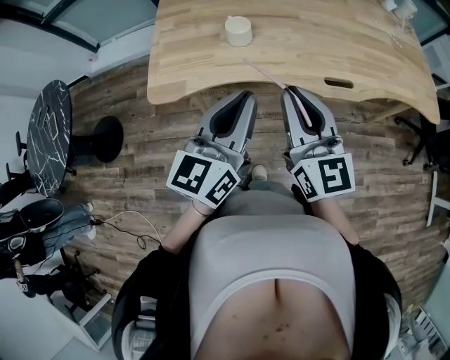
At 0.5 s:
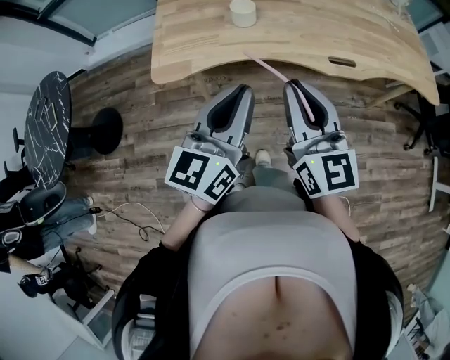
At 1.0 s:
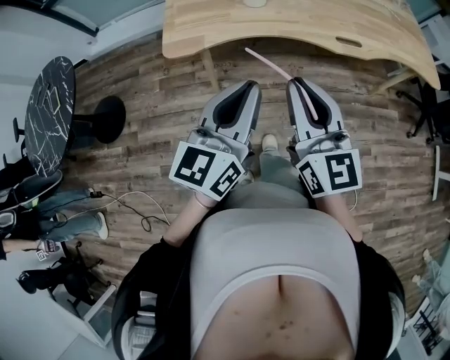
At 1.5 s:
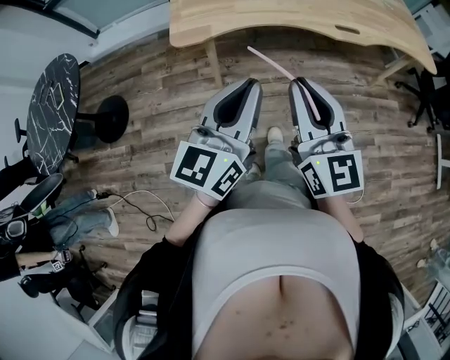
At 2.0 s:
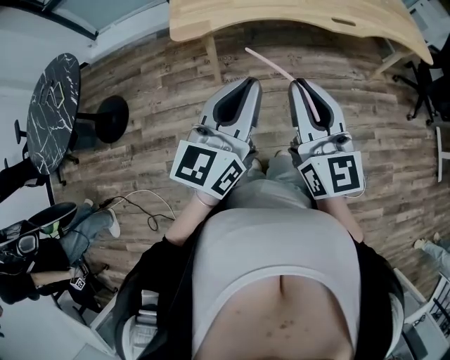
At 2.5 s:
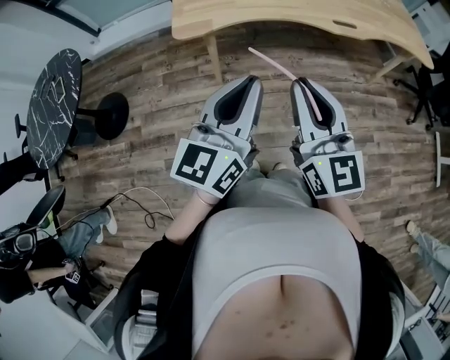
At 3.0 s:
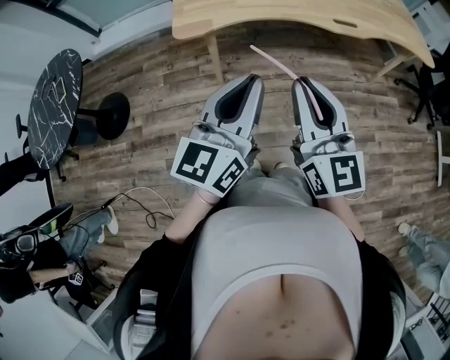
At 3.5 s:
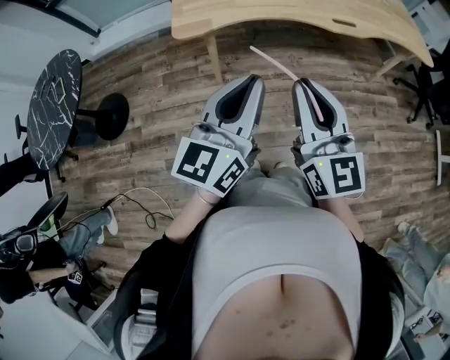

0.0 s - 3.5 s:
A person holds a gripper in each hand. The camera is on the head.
0.0 s - 2.0 s: Both grippers move backward, roughly 25 cm.
2.0 s - 3.5 s: Both grippers stay about where they are.

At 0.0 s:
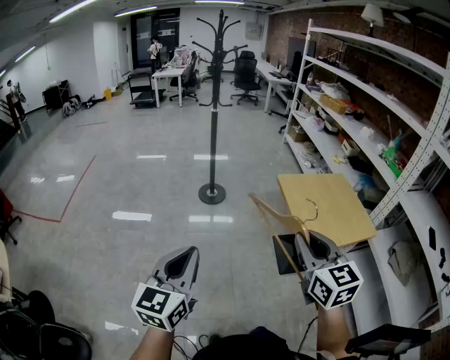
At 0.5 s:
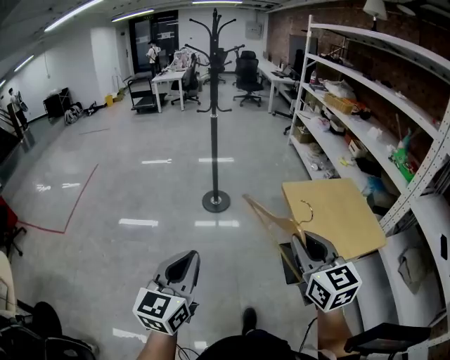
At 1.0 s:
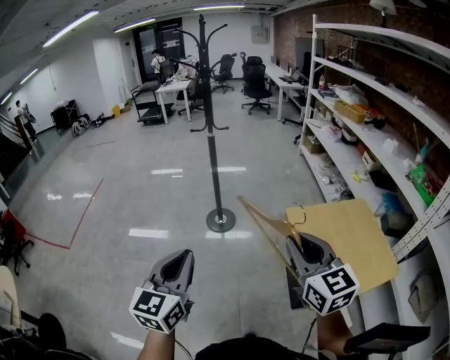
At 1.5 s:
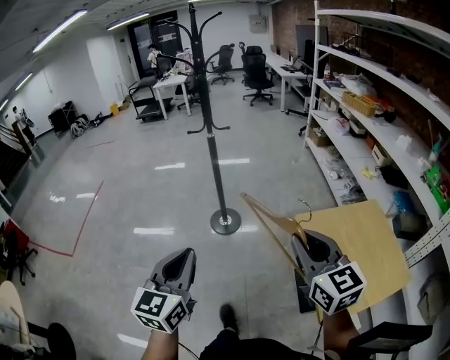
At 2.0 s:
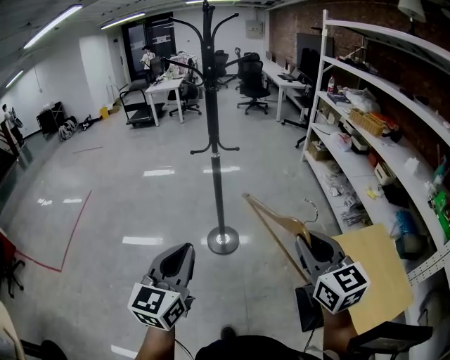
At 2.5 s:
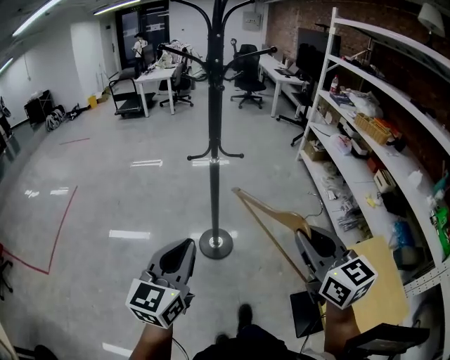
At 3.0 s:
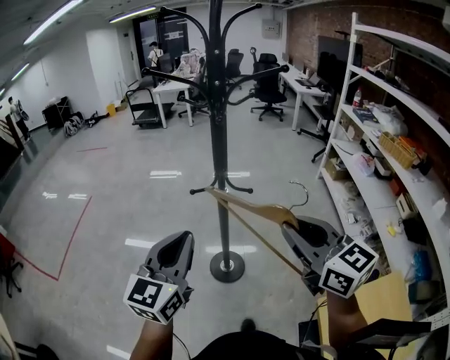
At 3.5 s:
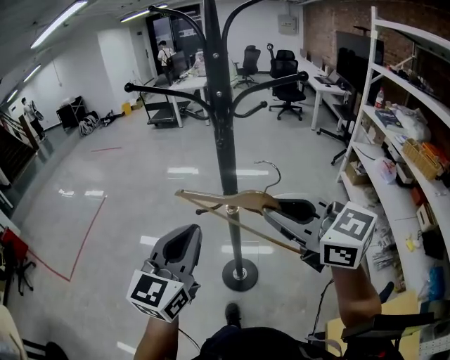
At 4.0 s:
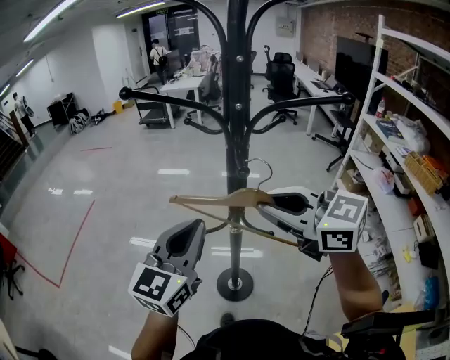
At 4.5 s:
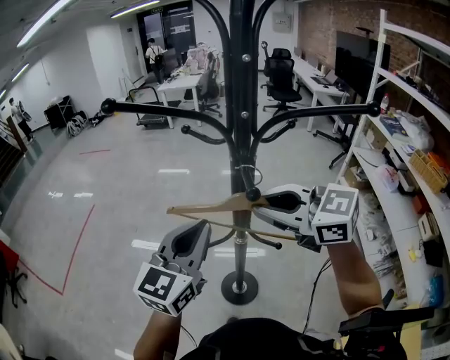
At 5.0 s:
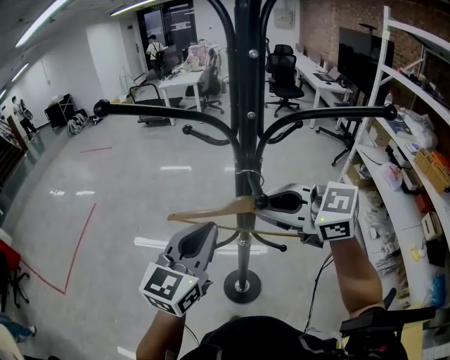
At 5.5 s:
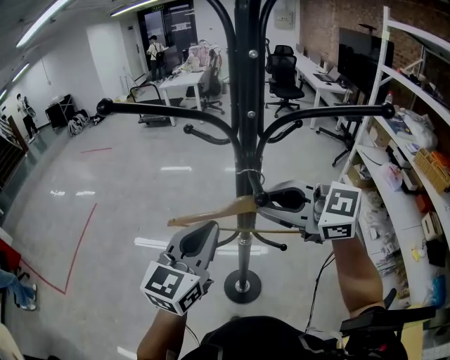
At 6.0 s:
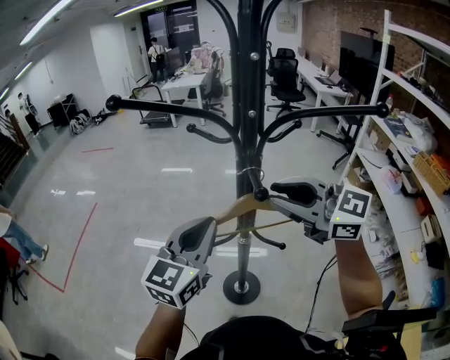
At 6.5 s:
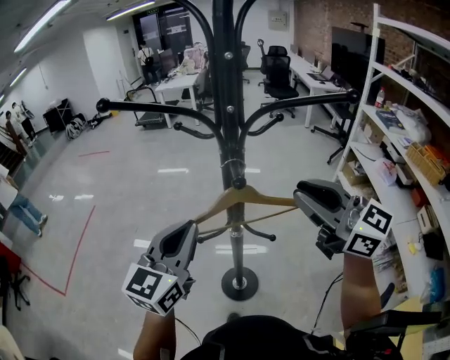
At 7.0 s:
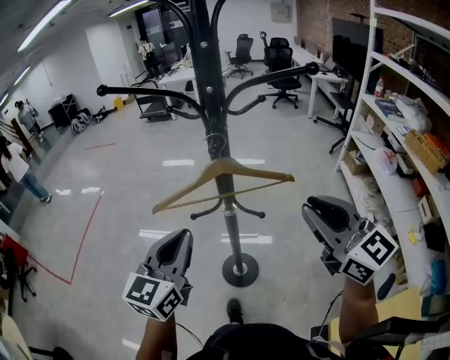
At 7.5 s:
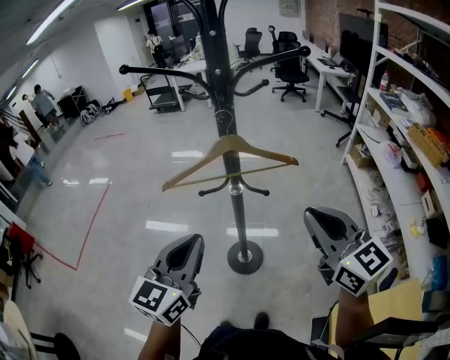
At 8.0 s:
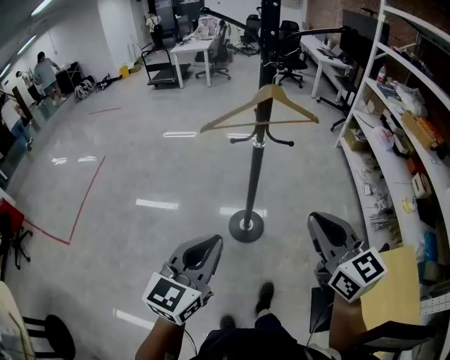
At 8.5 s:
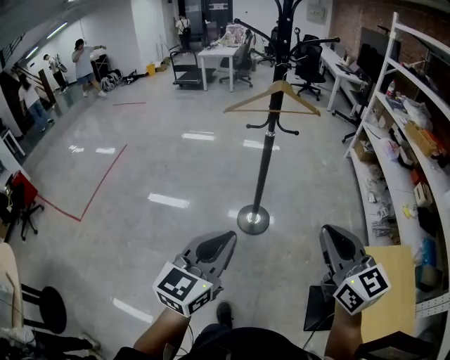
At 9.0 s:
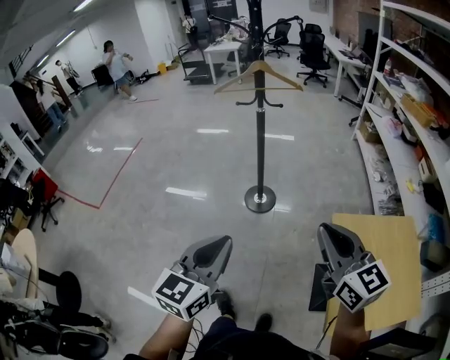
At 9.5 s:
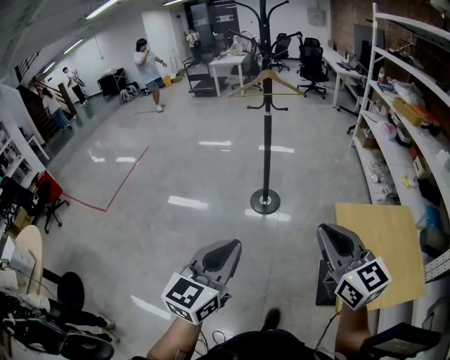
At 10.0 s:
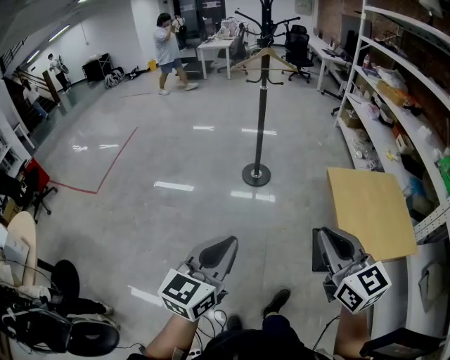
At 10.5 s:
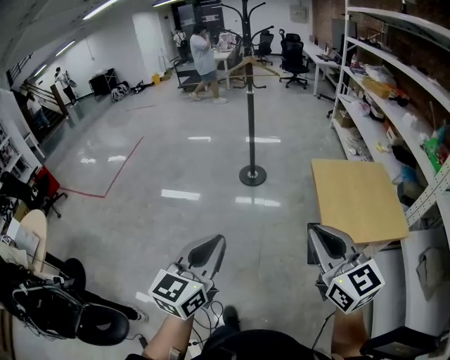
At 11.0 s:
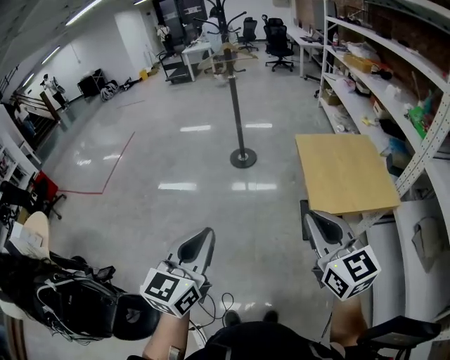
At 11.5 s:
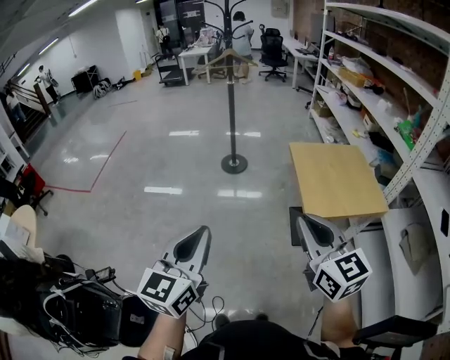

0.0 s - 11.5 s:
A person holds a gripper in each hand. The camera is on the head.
0.0 s - 2.0 s: The two grippers travel together, forward, about 50 cm.
2.0 s - 4.0 s: Both grippers are carried forward, roughly 40 cm. The right gripper rotates roughly 50 degrees.
4.0 s - 6.0 s: Both grippers travel together forward, about 5 cm.
6.0 s - 7.5 s: The left gripper goes about 20 cm backward; the right gripper moves backward and to the right, approximately 20 cm, and swivels approximately 30 degrees.
7.5 s - 9.5 s: The two grippers travel together, backward, some 50 cm.
9.5 s - 11.5 s: The two grippers go some 35 cm backward.

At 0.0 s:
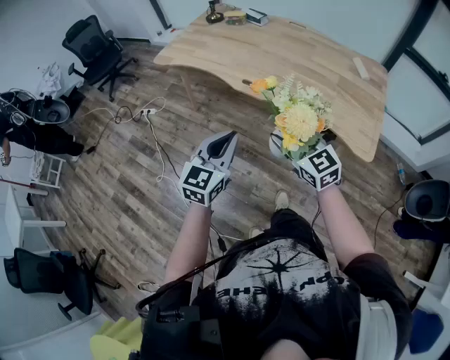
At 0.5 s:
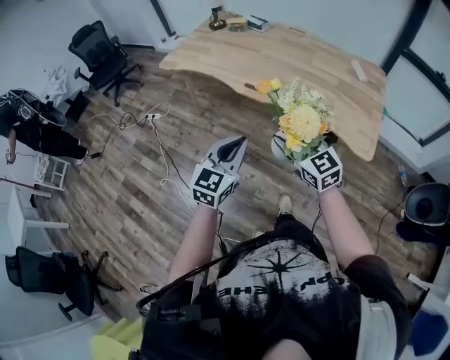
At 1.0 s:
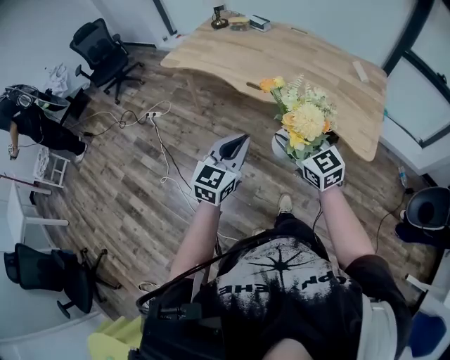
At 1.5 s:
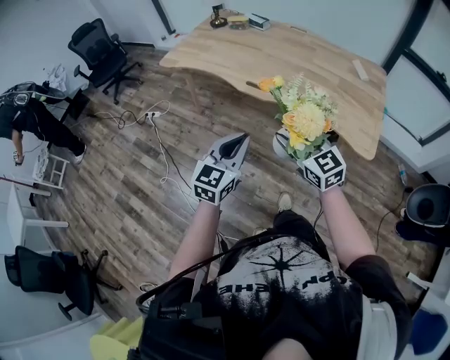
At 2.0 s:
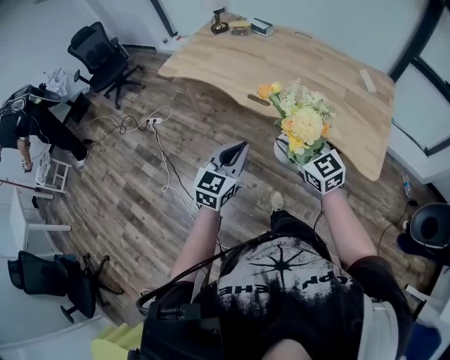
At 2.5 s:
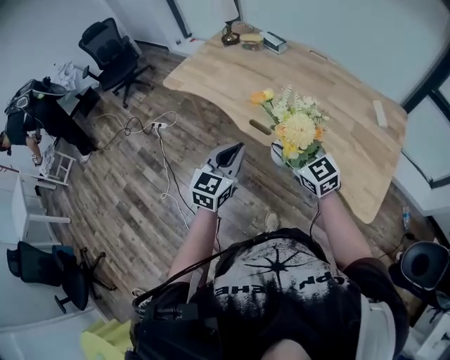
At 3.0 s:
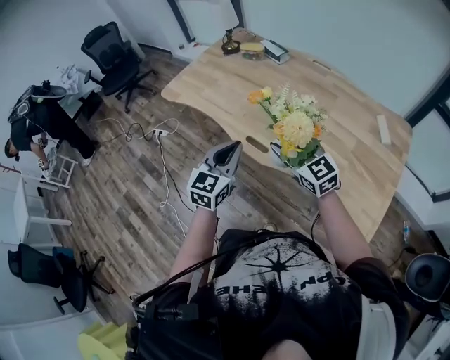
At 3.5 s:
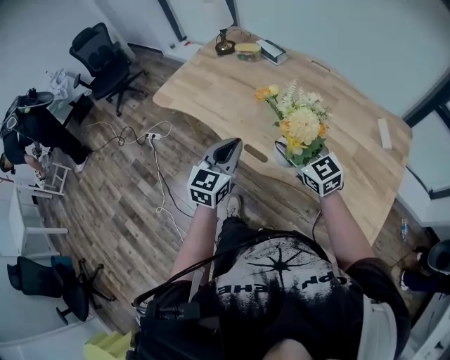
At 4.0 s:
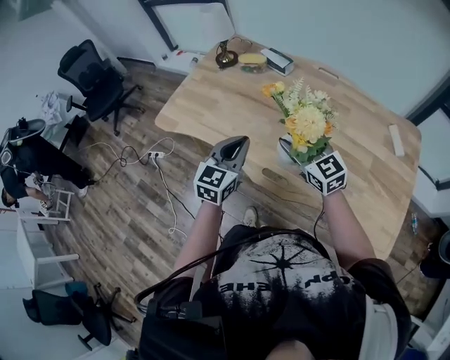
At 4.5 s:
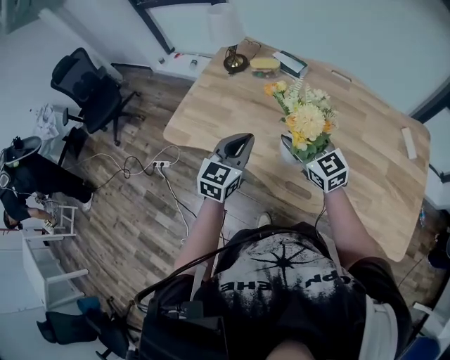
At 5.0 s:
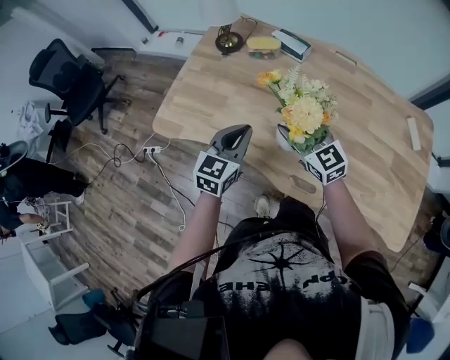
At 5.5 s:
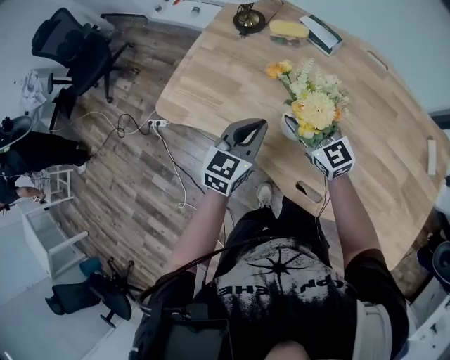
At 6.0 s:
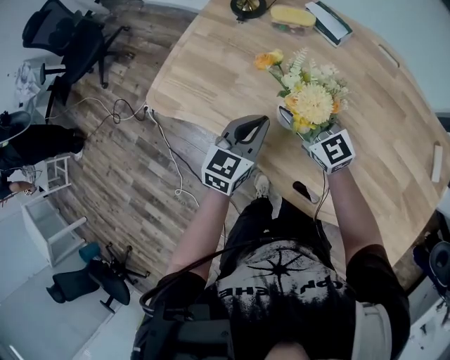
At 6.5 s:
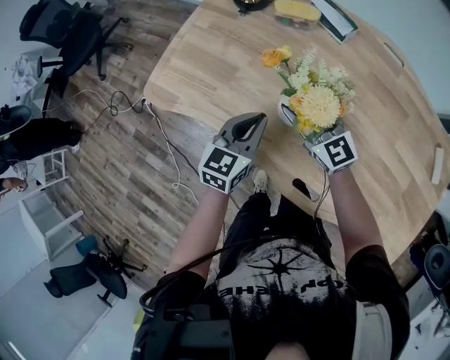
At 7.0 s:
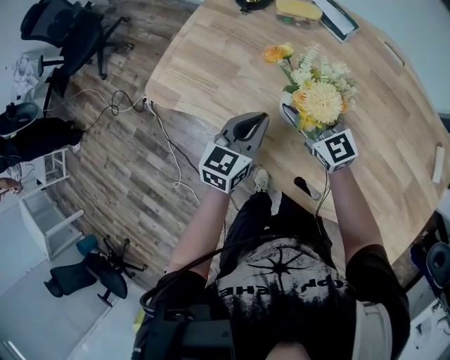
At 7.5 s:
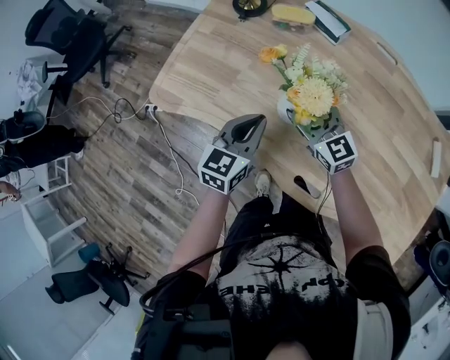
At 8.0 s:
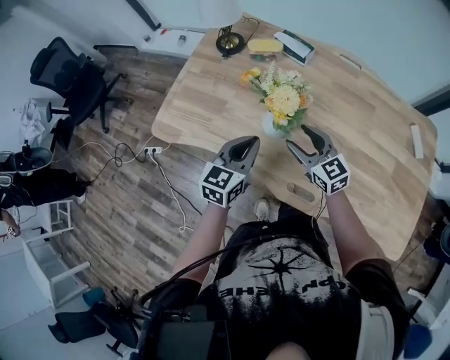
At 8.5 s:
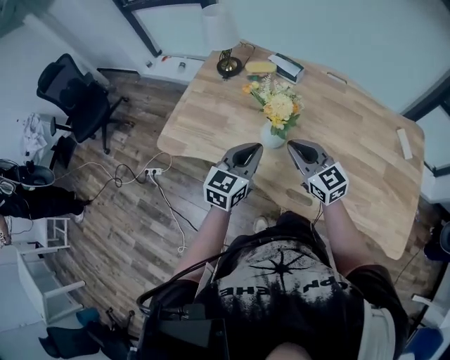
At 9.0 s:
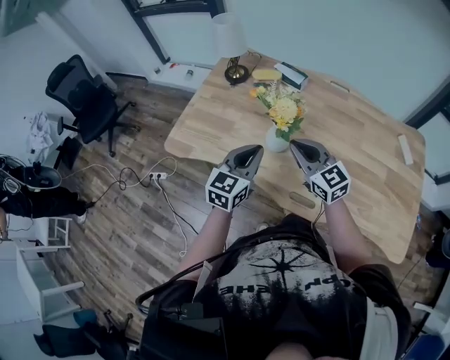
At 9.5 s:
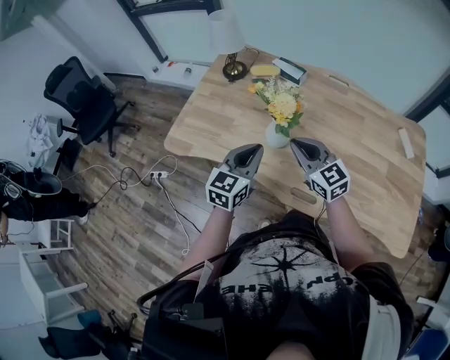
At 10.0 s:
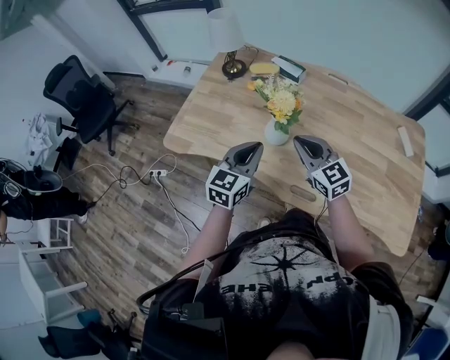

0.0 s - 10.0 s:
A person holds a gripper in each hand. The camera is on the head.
0.0 s - 2.0 s: Both grippers travel together forward, about 5 cm.
2.0 s - 4.0 s: Both grippers move forward, some 40 cm.
4.0 s - 6.0 s: The right gripper travels forward, to the left and downward by some 25 cm. The left gripper goes roughly 20 cm forward and downward.
6.0 s - 8.0 s: The right gripper travels backward and to the right by some 10 cm, while the left gripper shifts approximately 5 cm backward.
8.0 s - 10.0 s: The left gripper heads upward, covering about 5 cm, while the right gripper goes approximately 10 cm upward, and closes up.

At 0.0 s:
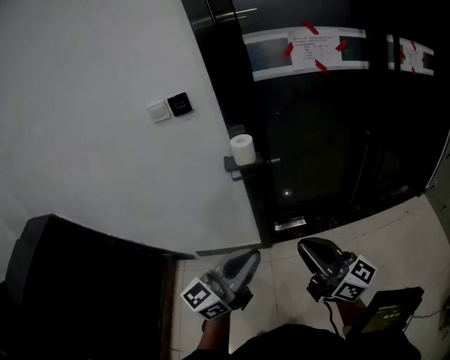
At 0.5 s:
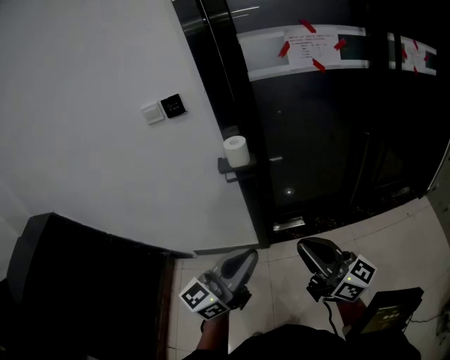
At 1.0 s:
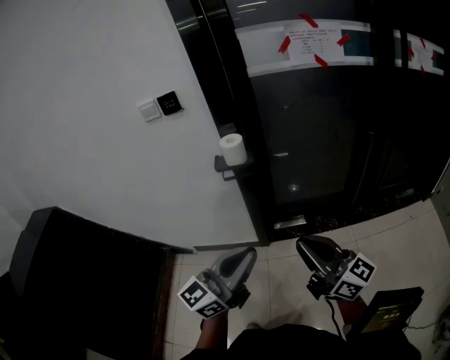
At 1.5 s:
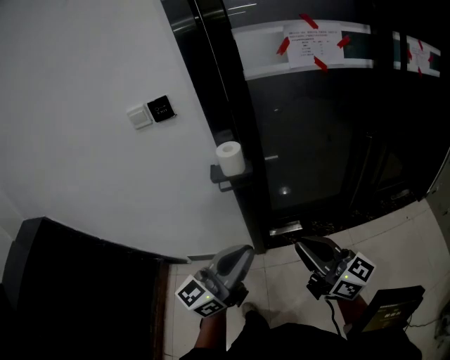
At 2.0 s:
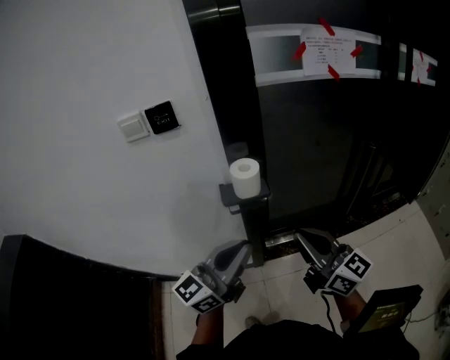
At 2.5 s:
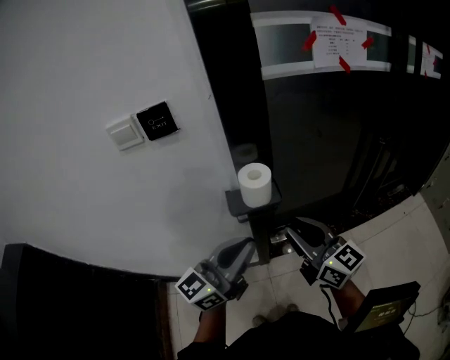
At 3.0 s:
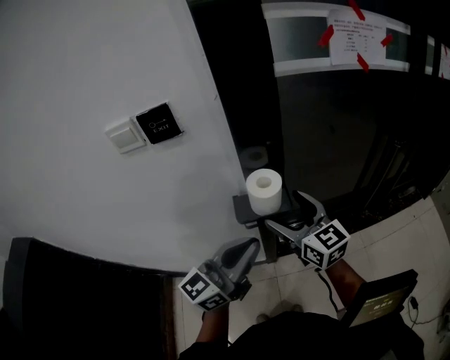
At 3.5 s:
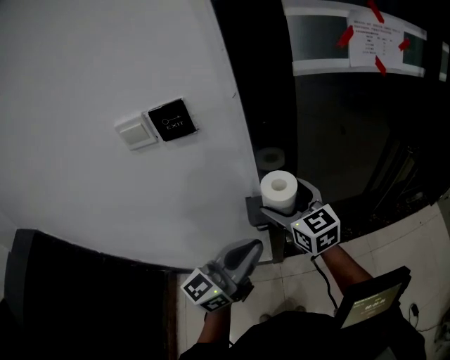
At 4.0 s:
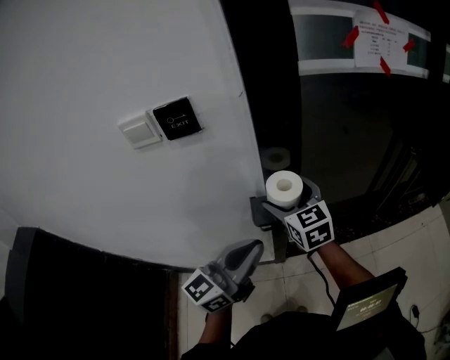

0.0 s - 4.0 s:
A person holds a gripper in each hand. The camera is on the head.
0.0 s - 2.0 s: Both grippers travel together forward, some 25 cm.
2.0 s - 4.0 s: The left gripper heads forward and to the left, covering roughly 15 cm. The right gripper is displaced forward and to the left by approximately 30 cm, swivels approximately 40 degrees, and opens.
